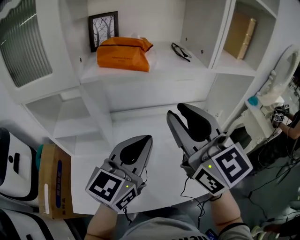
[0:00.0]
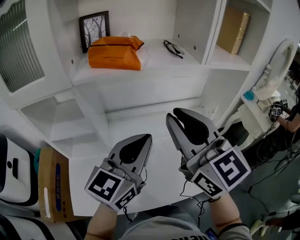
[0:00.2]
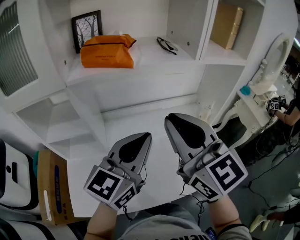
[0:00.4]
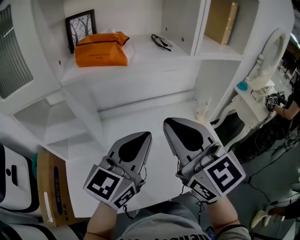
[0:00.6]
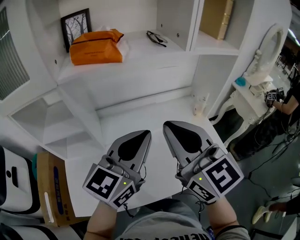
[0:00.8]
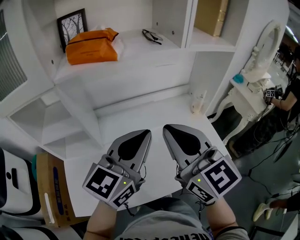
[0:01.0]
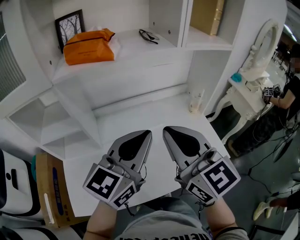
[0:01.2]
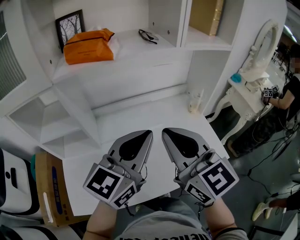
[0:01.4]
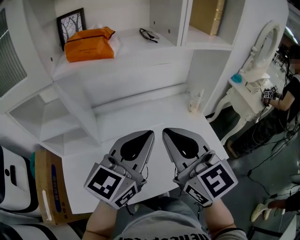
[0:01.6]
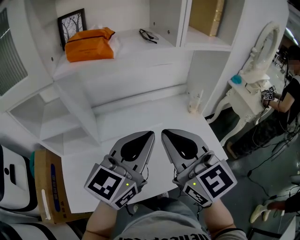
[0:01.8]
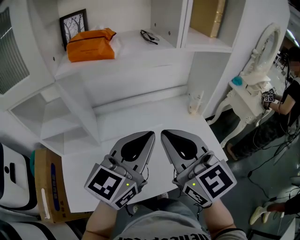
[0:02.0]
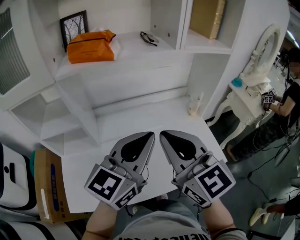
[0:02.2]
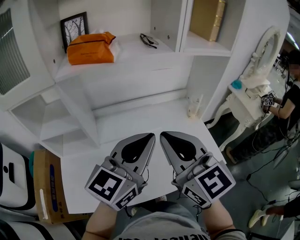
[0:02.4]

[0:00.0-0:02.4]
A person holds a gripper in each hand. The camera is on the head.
0:00.0 to 0:01.2: The left gripper moves to the right, approximately 5 cm; the right gripper travels downward, backward and to the right by some 10 cm, and closes.
0:01.2 to 0:02.4: There are only small adjustments of the grippers.

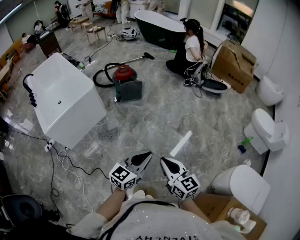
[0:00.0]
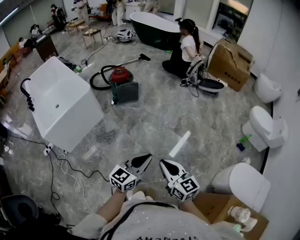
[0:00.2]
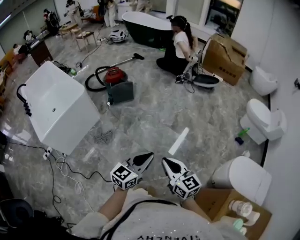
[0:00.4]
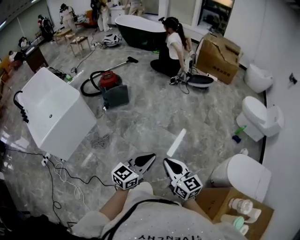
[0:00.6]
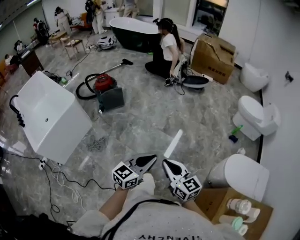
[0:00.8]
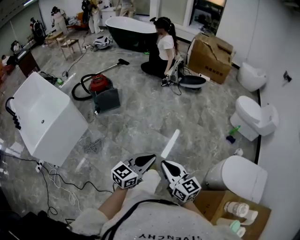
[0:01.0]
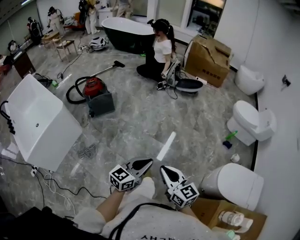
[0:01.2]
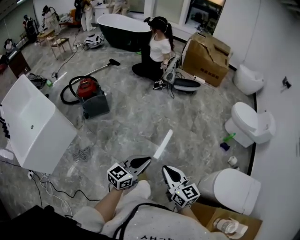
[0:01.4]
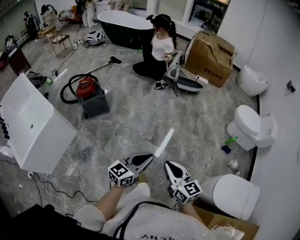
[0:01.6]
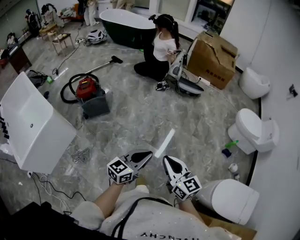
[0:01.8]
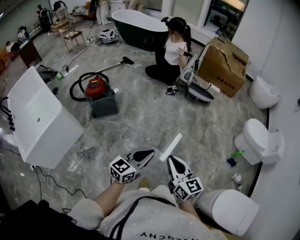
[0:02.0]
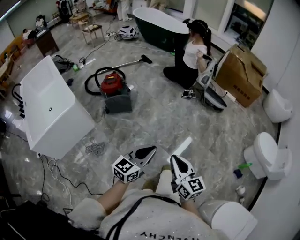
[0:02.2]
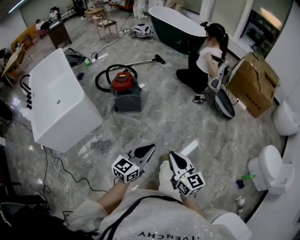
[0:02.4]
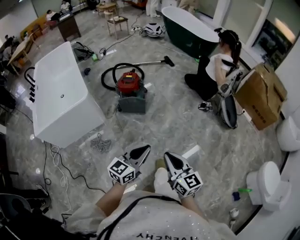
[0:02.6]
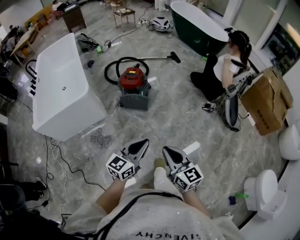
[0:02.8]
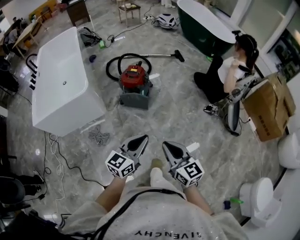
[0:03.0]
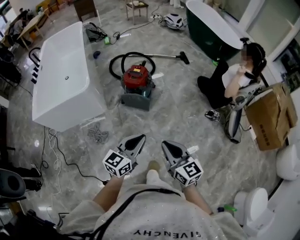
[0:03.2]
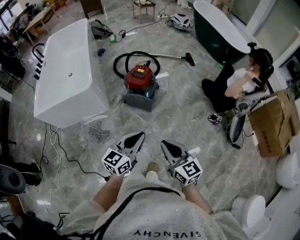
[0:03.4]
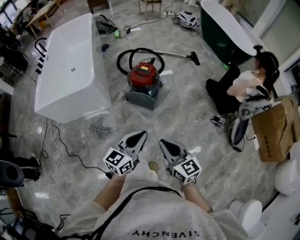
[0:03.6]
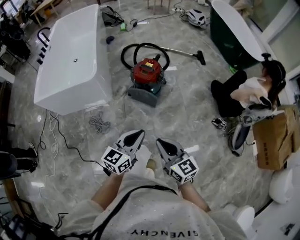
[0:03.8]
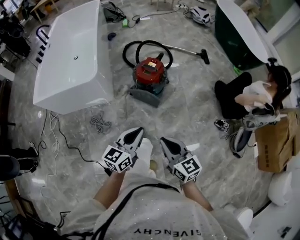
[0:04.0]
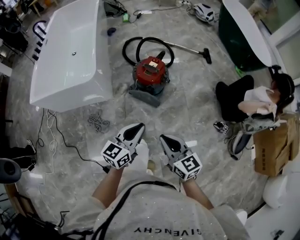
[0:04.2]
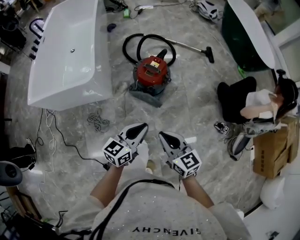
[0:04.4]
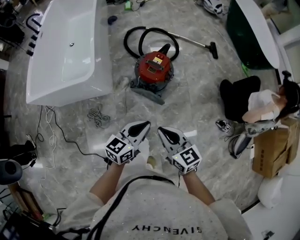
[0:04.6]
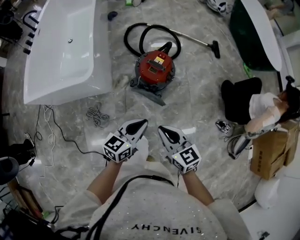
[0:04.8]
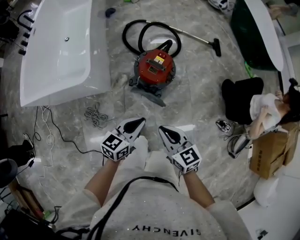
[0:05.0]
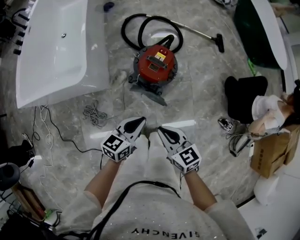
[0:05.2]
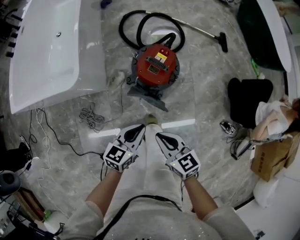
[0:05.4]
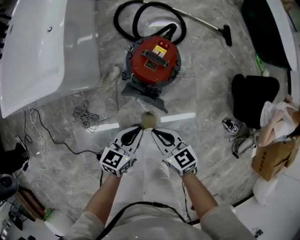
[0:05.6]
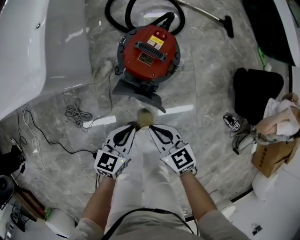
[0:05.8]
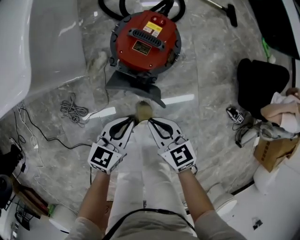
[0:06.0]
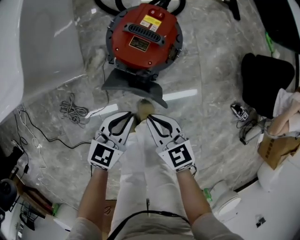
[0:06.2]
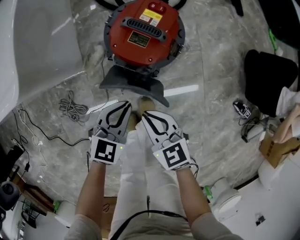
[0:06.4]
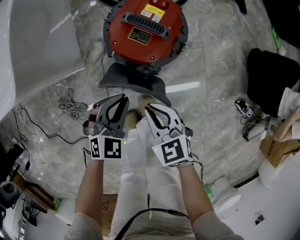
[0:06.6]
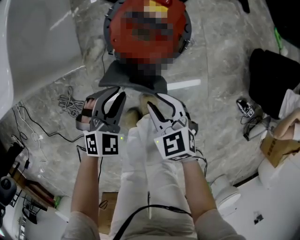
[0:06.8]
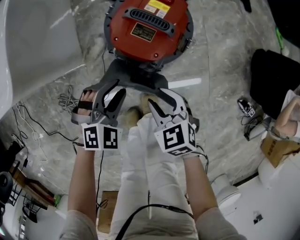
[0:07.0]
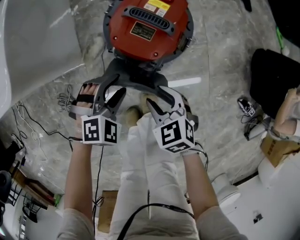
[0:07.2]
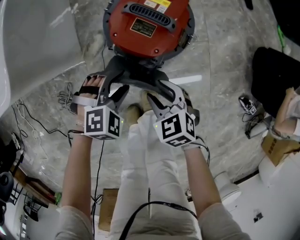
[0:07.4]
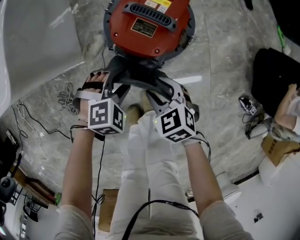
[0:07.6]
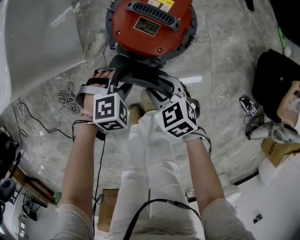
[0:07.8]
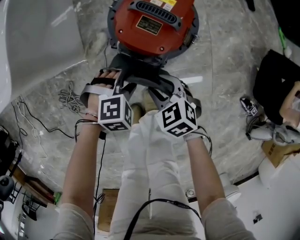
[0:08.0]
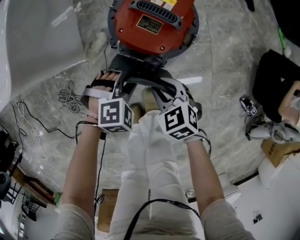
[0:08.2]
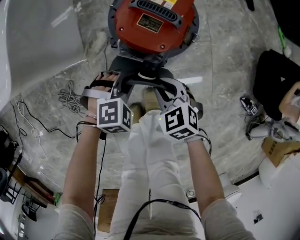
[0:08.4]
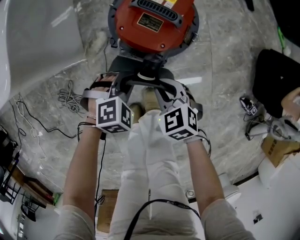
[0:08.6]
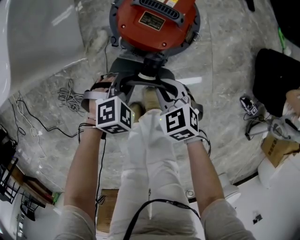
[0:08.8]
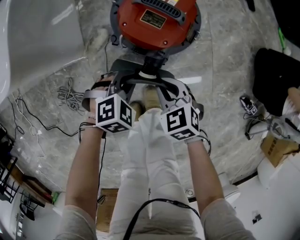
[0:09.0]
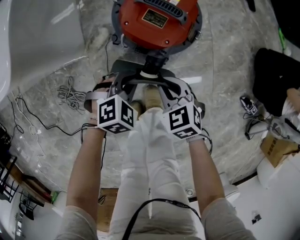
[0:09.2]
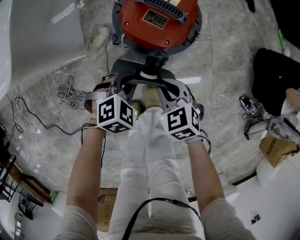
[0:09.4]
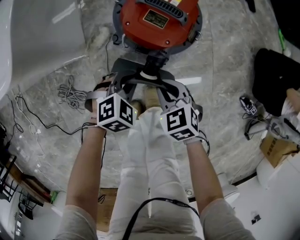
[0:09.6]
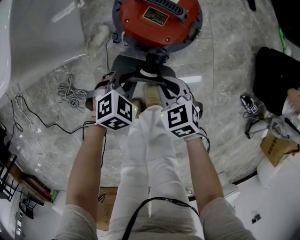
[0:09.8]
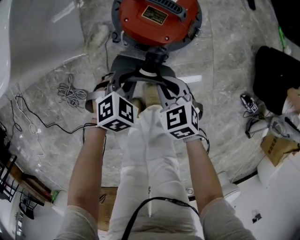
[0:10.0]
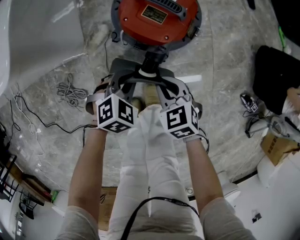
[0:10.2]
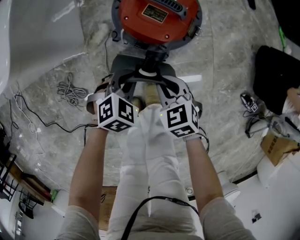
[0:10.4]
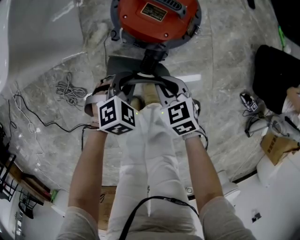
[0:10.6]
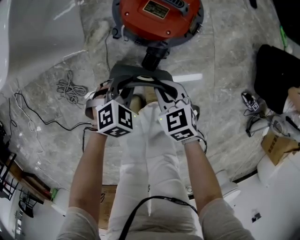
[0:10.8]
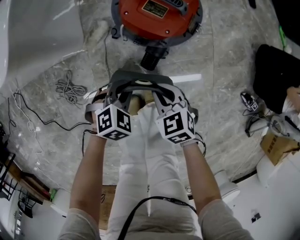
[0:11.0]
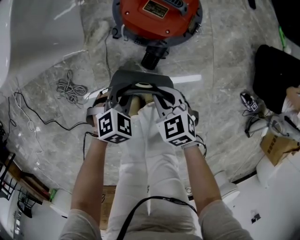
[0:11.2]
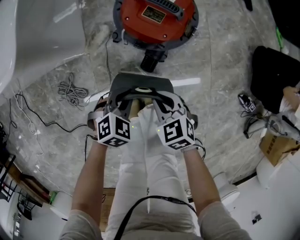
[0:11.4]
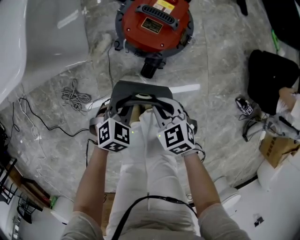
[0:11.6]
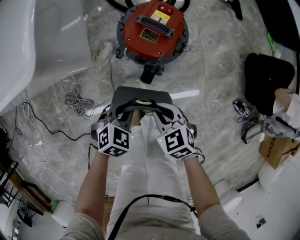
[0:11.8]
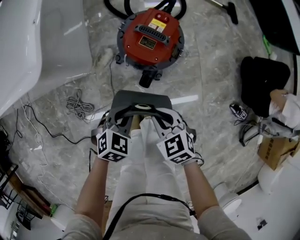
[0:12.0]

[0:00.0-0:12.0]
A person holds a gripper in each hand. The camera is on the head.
0:00.0 to 0:01.6: Both grippers travel together forward and to the right, approximately 25 cm. The left gripper rotates about 20 degrees.
0:01.6 to 0:03.0: The left gripper shifts by roughly 35 cm, and swivels about 50 degrees, while the right gripper changes place by roughly 40 cm, and rotates about 40 degrees.
0:03.0 to 0:04.4: The two grippers go approximately 25 cm forward. The right gripper changes its angle by roughly 20 degrees.
0:04.4 to 0:06.0: The two grippers go about 35 cm downward and forward.
0:06.0 to 0:07.6: The grippers both shift downward and forward by roughly 15 cm. The left gripper rotates around the line of its fingers by roughly 60 degrees, clockwise from behind, and opens; the right gripper swivels about 30 degrees, and opens up.
0:07.6 to 0:09.0: The left gripper closes its fingers; the right gripper closes up.
0:09.0 to 0:10.4: There are only small adjustments of the grippers.
0:10.4 to 0:12.0: The two grippers go approximately 15 cm upward and backward.

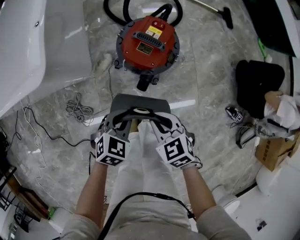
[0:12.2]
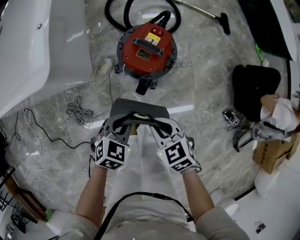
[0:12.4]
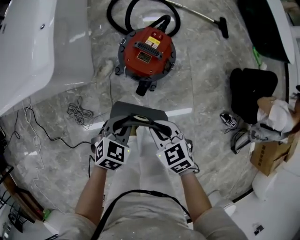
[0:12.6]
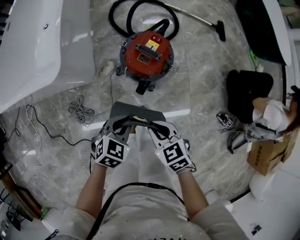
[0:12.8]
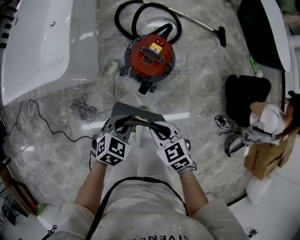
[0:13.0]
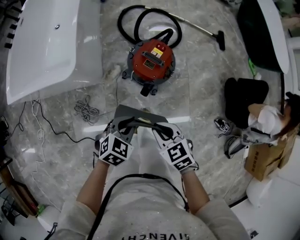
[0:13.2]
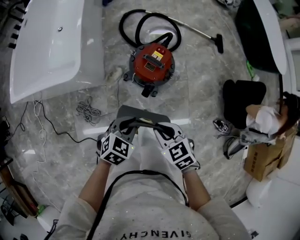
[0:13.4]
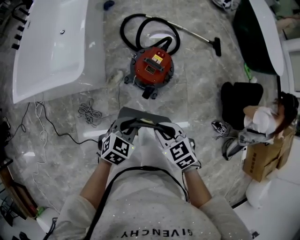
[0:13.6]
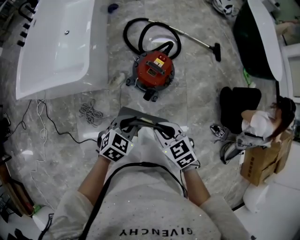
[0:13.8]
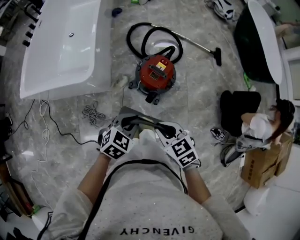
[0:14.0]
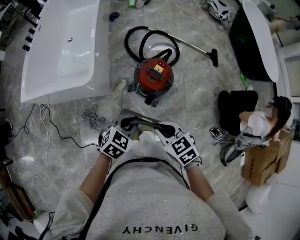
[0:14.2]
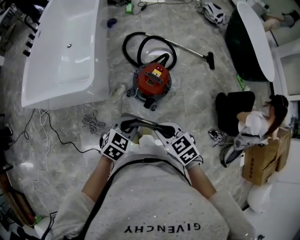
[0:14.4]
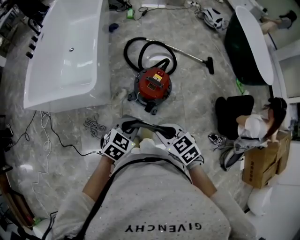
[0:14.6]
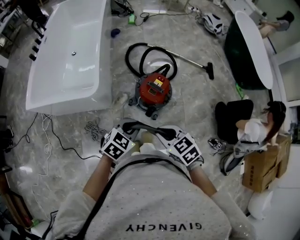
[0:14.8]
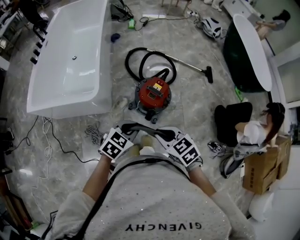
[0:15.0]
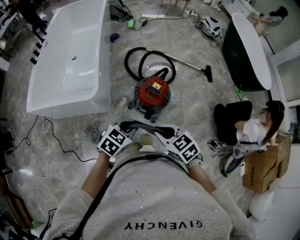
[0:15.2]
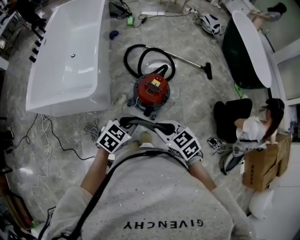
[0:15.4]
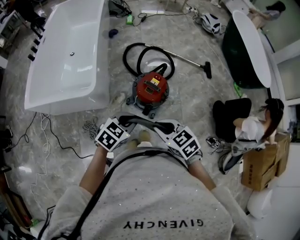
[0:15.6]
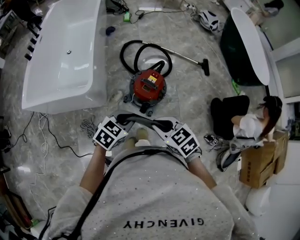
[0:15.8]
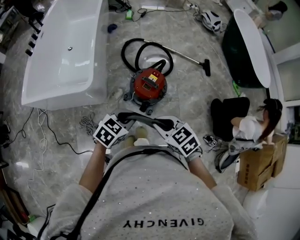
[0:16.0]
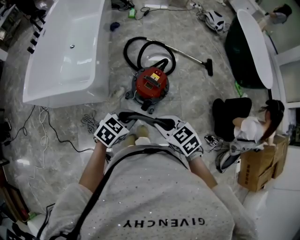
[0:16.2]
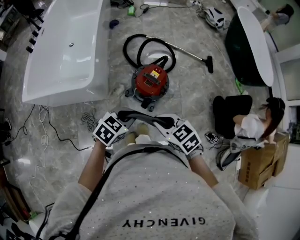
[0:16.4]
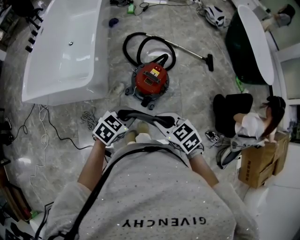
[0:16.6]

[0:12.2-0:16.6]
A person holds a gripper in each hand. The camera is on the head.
0:12.2 to 0:13.6: The grippers both shift upward by some 20 cm.
0:13.6 to 0:15.2: Both grippers move upward, approximately 10 cm.
0:15.2 to 0:16.6: The grippers move only a little.

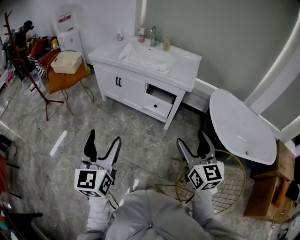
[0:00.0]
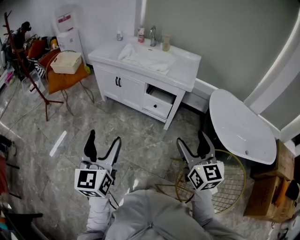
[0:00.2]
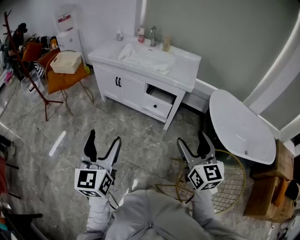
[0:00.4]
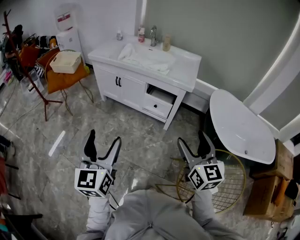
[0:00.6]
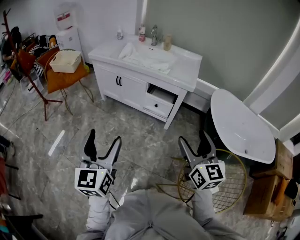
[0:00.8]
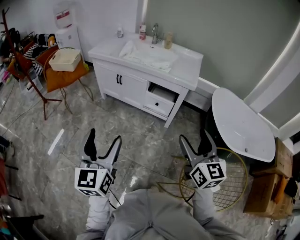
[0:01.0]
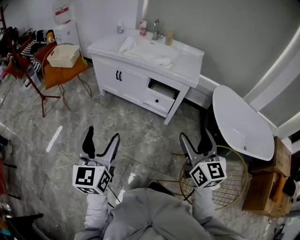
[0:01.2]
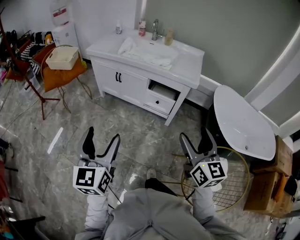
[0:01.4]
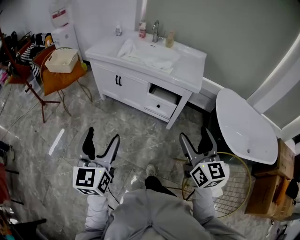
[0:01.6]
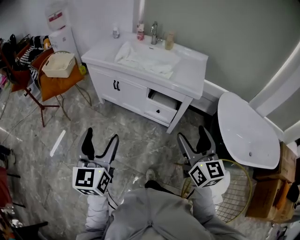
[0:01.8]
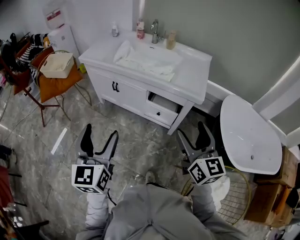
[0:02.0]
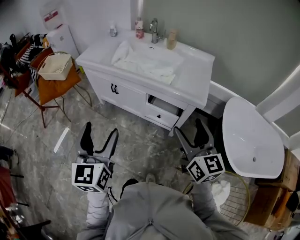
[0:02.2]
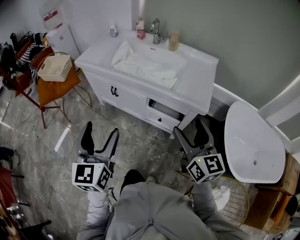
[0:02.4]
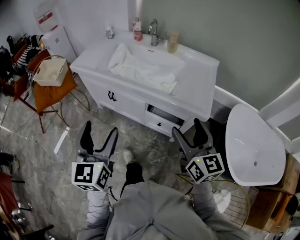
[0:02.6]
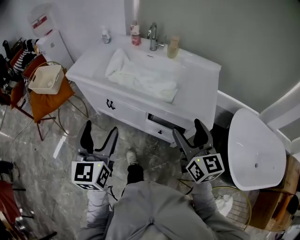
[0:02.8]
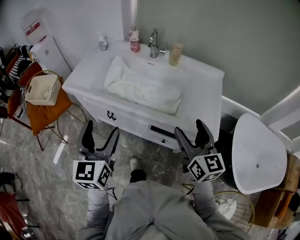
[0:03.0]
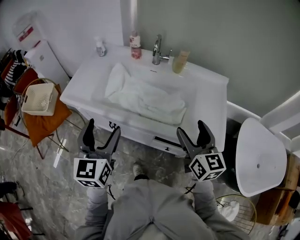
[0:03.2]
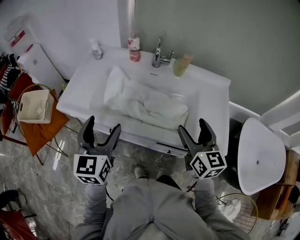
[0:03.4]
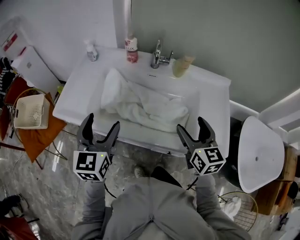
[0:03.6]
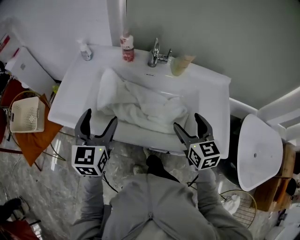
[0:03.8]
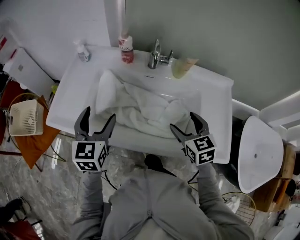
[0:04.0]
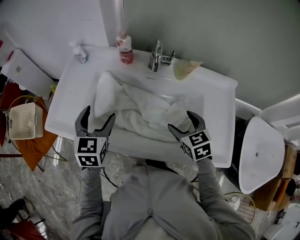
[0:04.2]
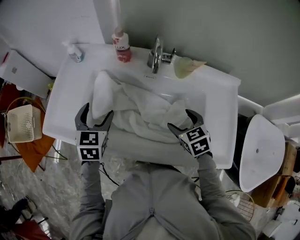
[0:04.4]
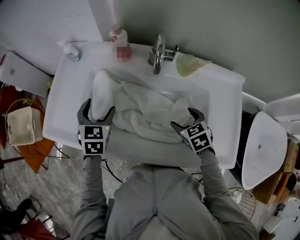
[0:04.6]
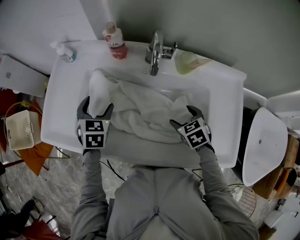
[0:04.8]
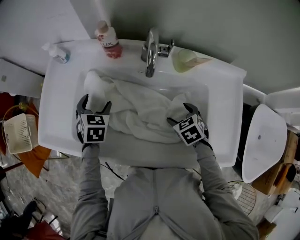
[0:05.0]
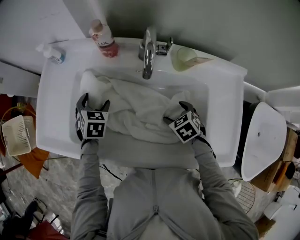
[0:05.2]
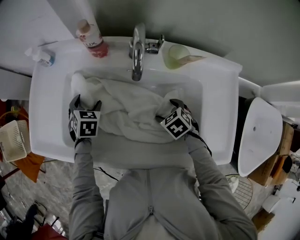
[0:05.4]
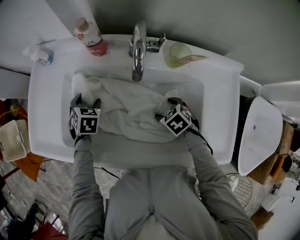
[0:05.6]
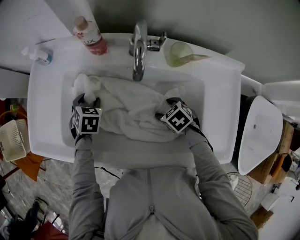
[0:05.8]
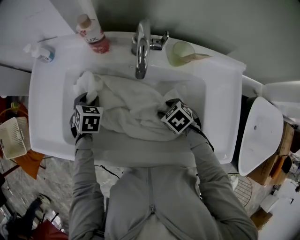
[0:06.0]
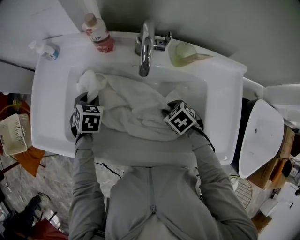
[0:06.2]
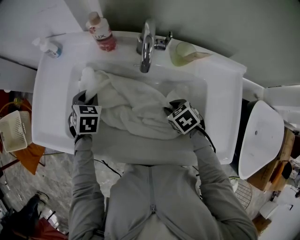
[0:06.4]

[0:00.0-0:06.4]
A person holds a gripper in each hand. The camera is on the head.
0:00.0 to 0:01.6: The grippers both shift forward by about 10 cm.
0:01.6 to 0:03.2: The pair of grippers is taken forward, about 50 cm.
0:03.2 to 0:04.8: The left gripper is displaced forward and downward by about 40 cm, and tilts its fingers approximately 30 degrees downward. Meanwhile the right gripper goes about 35 cm downward and forward, and tips its fingers downward by roughly 50 degrees.
0:04.8 to 0:06.4: The right gripper closes. Meanwhile the left gripper shifts roughly 5 cm downward, and closes its fingers.
